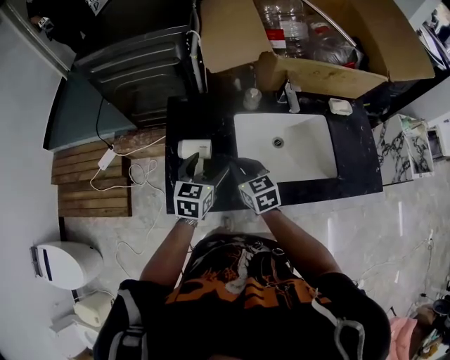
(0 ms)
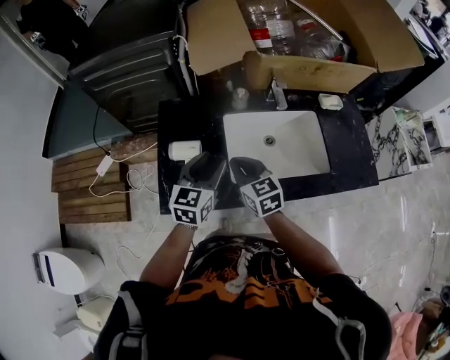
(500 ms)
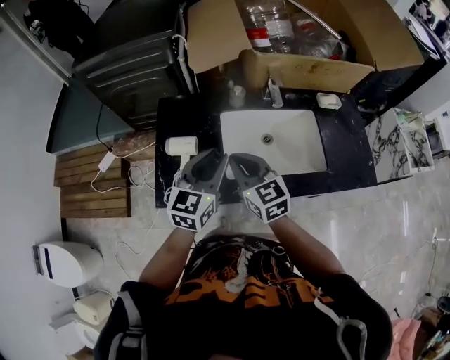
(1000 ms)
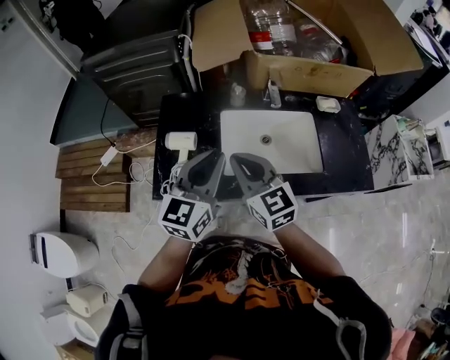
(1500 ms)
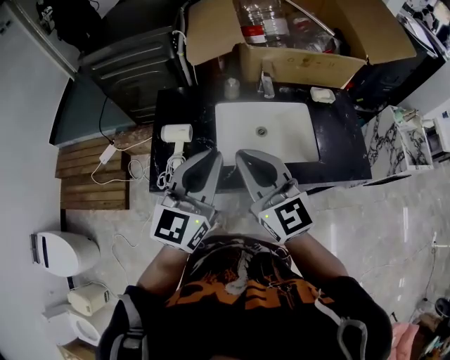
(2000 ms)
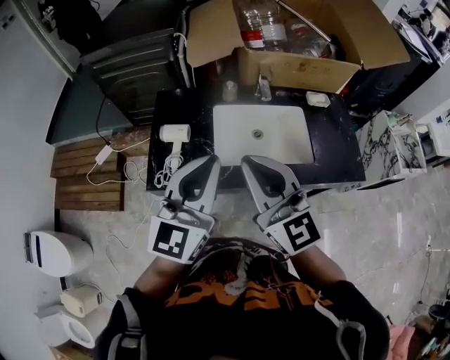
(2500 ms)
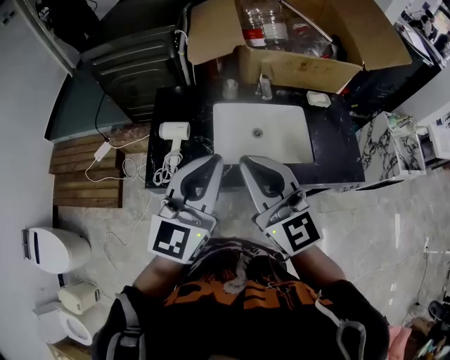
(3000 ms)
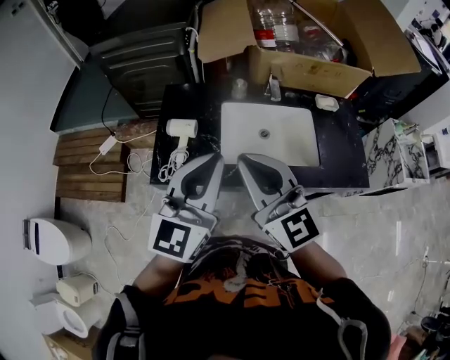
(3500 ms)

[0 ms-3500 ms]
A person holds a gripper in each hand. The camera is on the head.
0 ms to 2000 ms: The right gripper travels upward and backward by about 30 cm, and rotates roughly 30 degrees; the left gripper heads upward, backward and to the right, covering some 30 cm, rotates roughly 30 degrees, and closes up.
2000 ms to 3500 ms: The right gripper ends up some 5 cm from where it was.

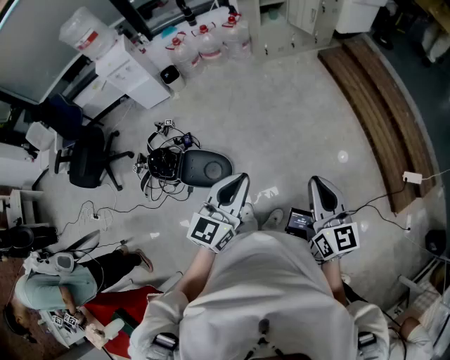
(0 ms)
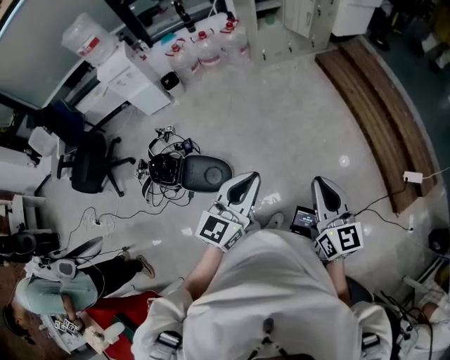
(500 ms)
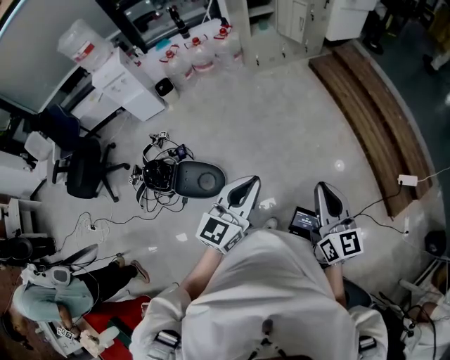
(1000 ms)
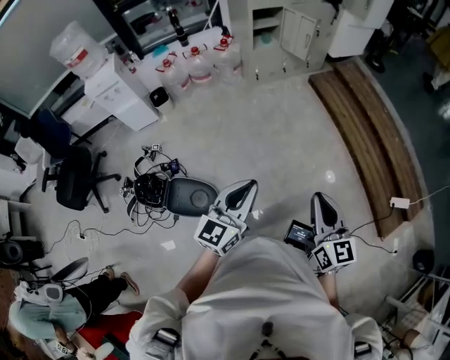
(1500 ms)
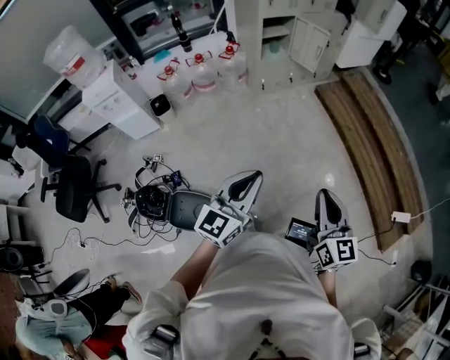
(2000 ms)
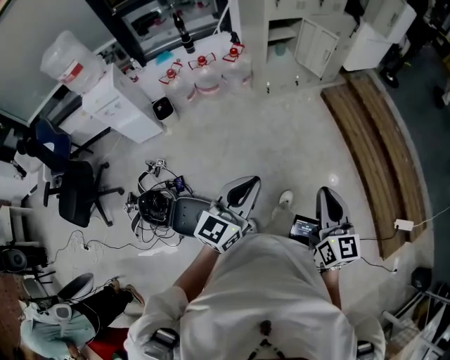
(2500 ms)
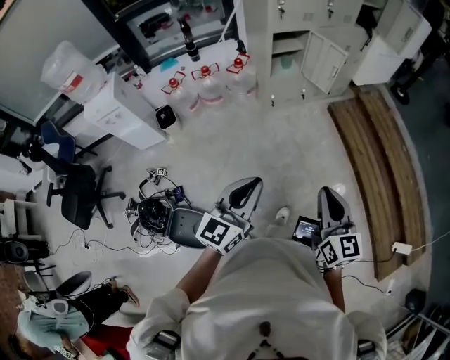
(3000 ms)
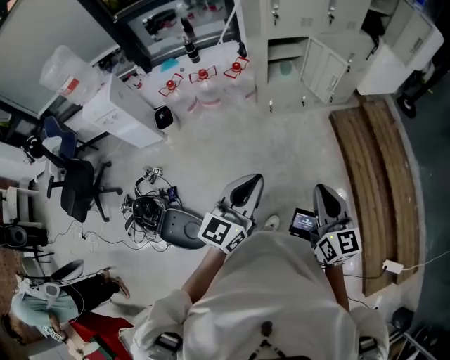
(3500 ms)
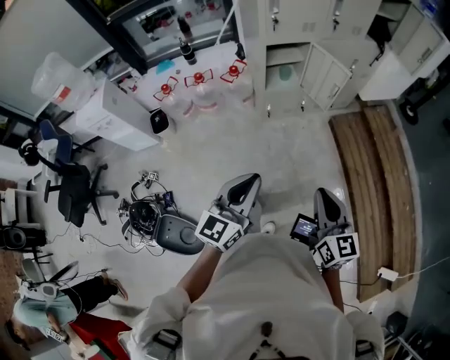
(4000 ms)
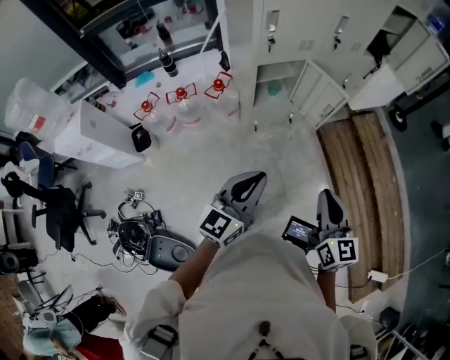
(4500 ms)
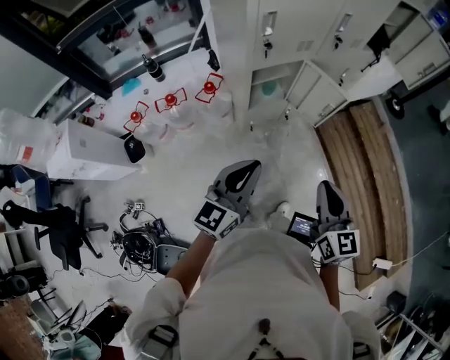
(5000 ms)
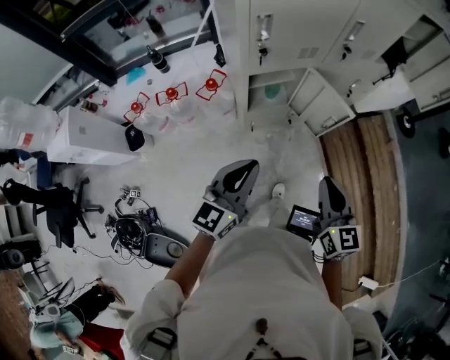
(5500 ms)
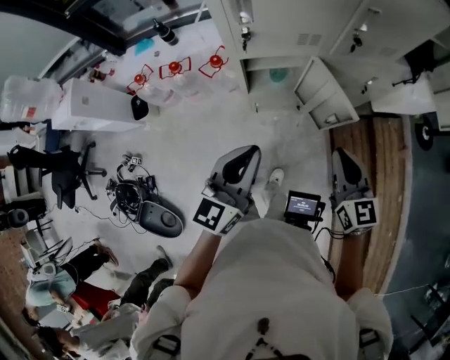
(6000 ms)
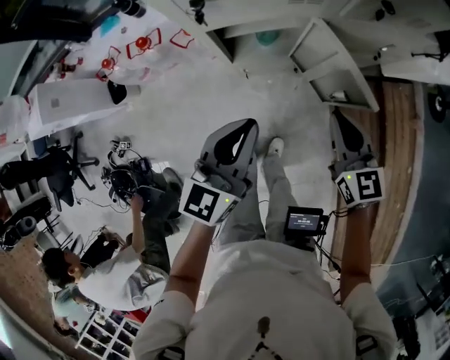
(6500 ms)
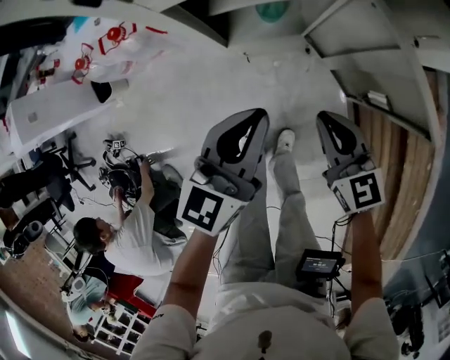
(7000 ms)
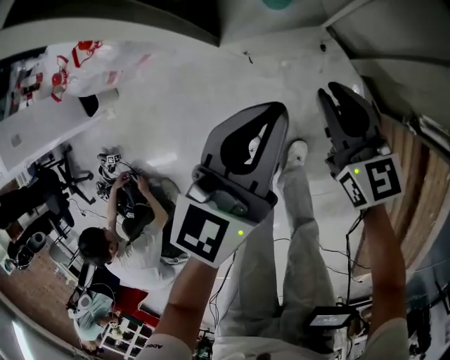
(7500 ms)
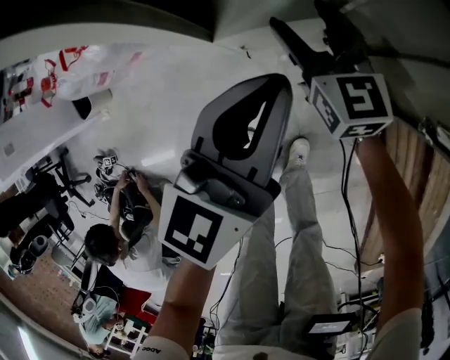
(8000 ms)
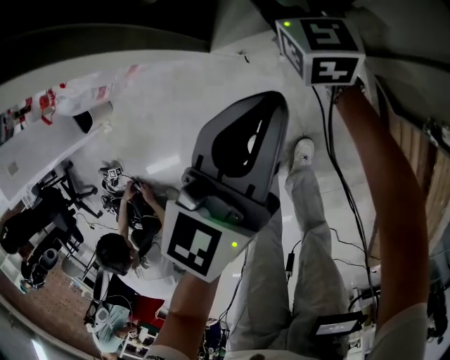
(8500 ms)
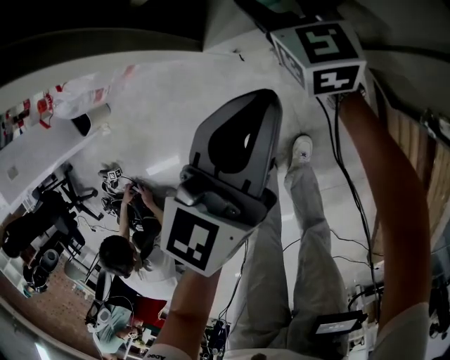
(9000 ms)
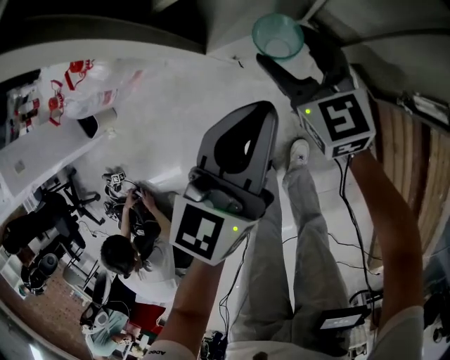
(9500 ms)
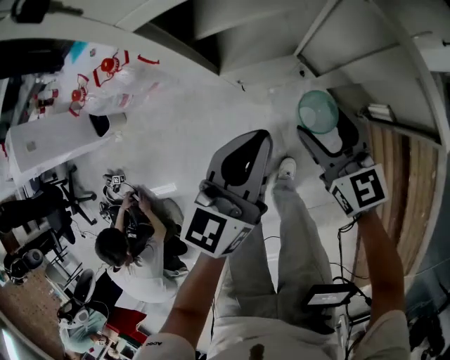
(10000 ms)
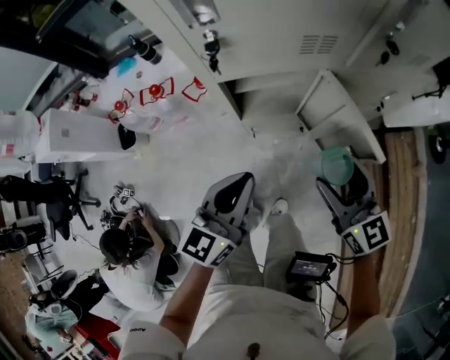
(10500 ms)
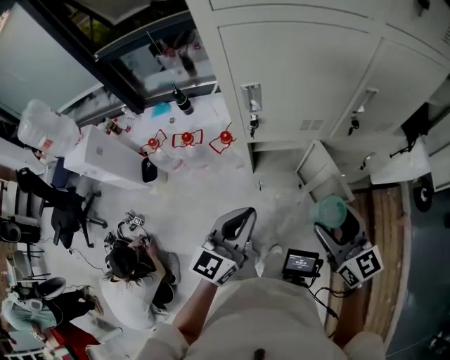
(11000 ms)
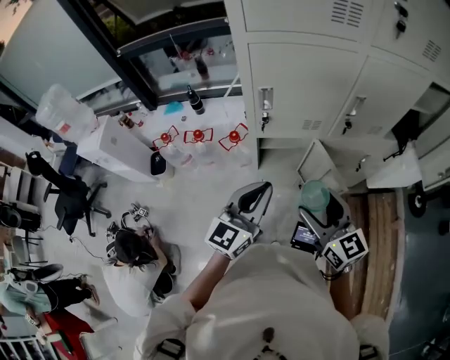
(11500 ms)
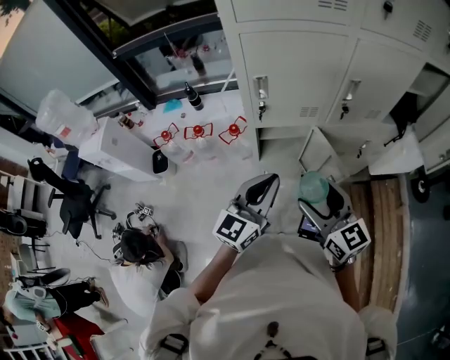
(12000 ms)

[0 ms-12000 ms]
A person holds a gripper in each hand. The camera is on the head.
0 ms to 2000 ms: Both grippers move forward, roughly 25 cm.
2000 ms to 4000 ms: Both grippers travel together forward, roughly 40 cm.
4000 ms to 6000 ms: Both grippers travel together forward, approximately 40 cm.
6000 ms to 8000 ms: The grippers both shift downward and forward by roughly 50 cm. The right gripper opens up.
8000 ms to 10000 ms: The left gripper heads upward and backward, covering approximately 10 cm. Meanwhile the right gripper shifts roughly 20 cm backward, upward and to the right.
10000 ms to 12000 ms: Both grippers travel together upward, some 40 cm. The left gripper turns by roughly 20 degrees.

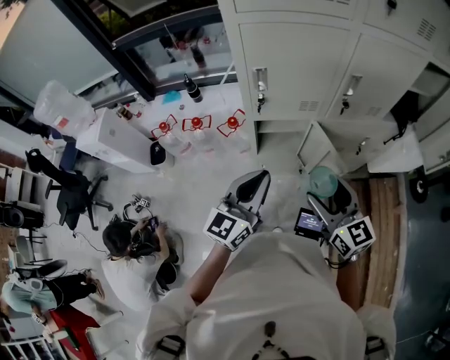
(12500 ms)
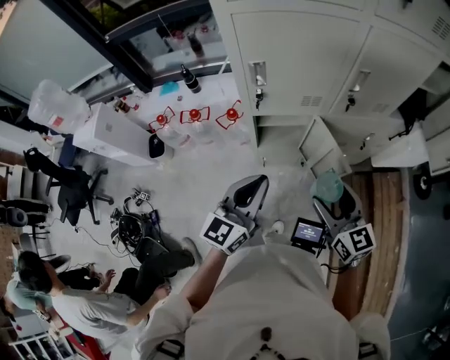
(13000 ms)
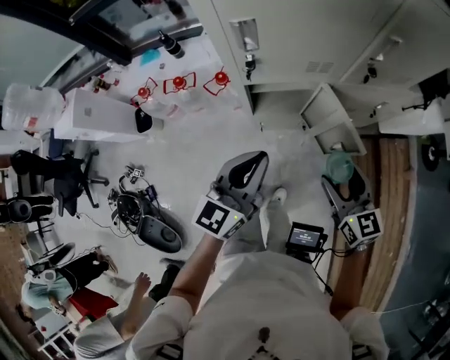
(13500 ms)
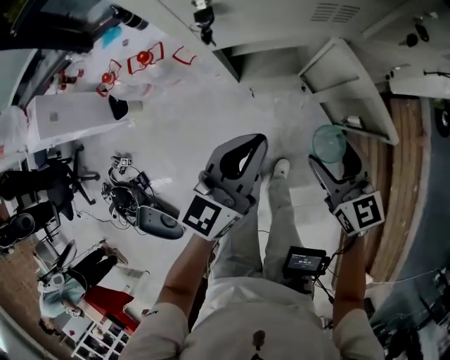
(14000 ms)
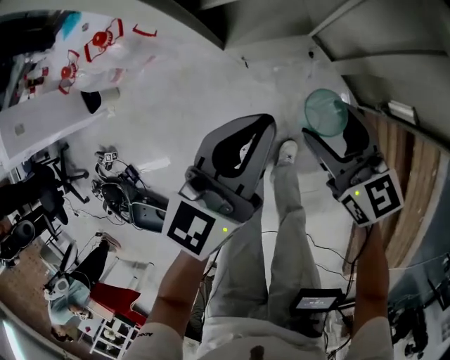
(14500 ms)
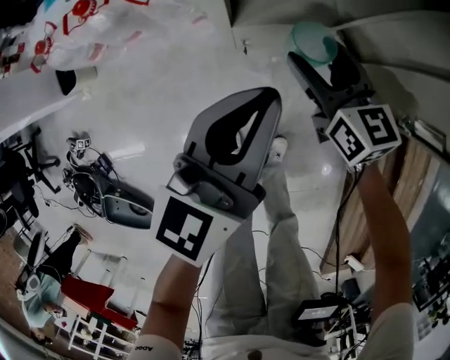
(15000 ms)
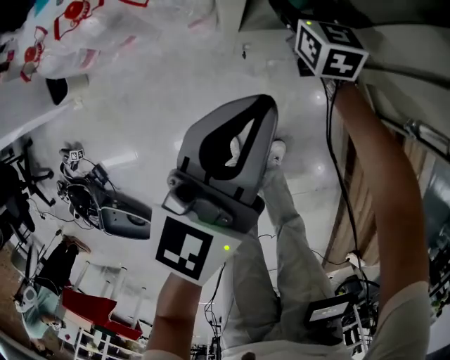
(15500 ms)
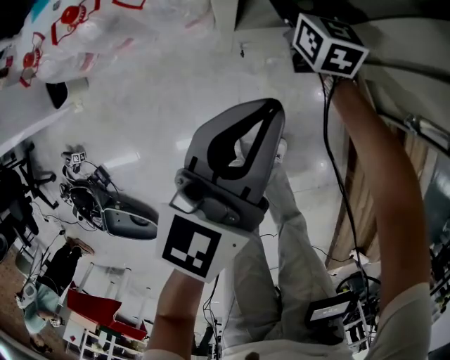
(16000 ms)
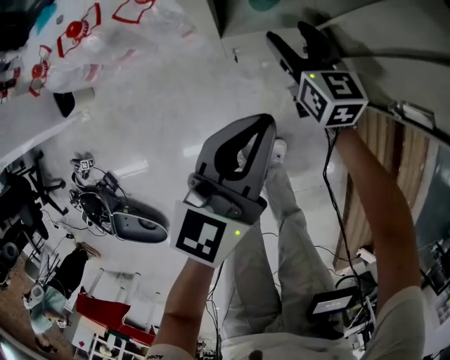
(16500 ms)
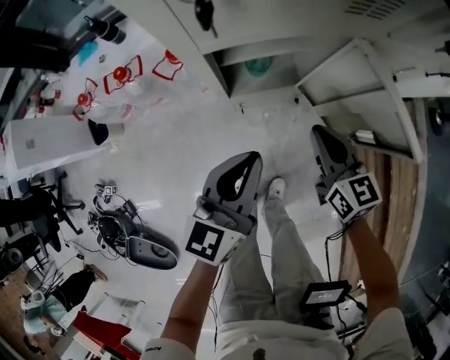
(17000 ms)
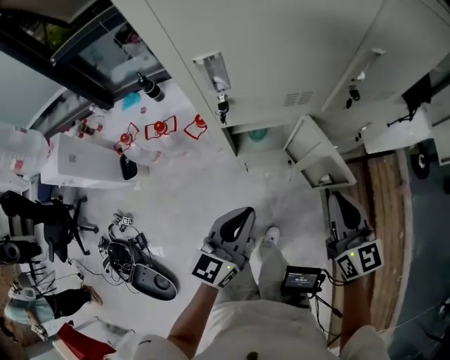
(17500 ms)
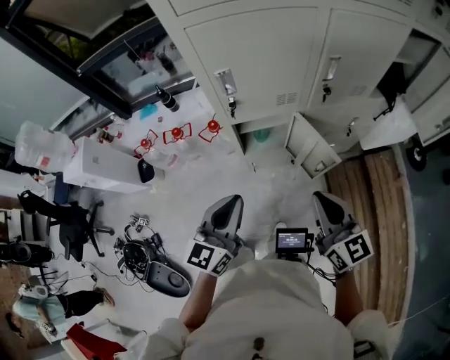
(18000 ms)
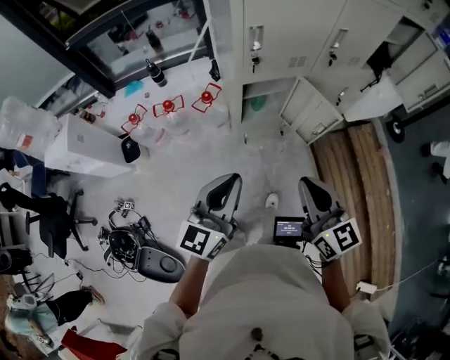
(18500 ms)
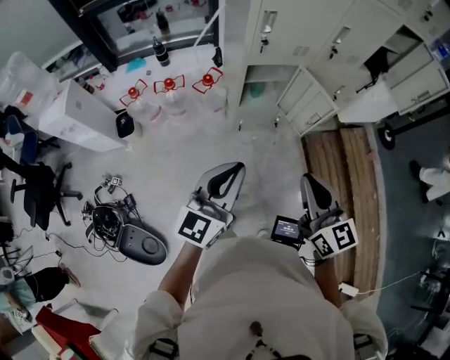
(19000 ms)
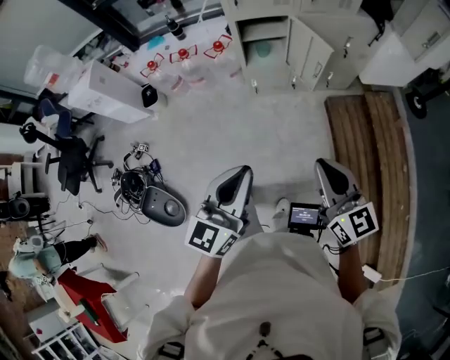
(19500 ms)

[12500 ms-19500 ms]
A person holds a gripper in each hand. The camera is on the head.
12500 ms to 14500 ms: The grippers both shift downward by approximately 35 cm. The right gripper swivels roughly 20 degrees.
14500 ms to 16000 ms: The right gripper shifts about 30 cm forward and downward, and turns by about 20 degrees. The left gripper travels downward and to the left by some 10 cm.
16000 ms to 17500 ms: The right gripper travels upward and backward by some 50 cm, and closes; the left gripper moves upward, approximately 30 cm.
17500 ms to 19500 ms: The two grippers travel together, backward, some 40 cm.

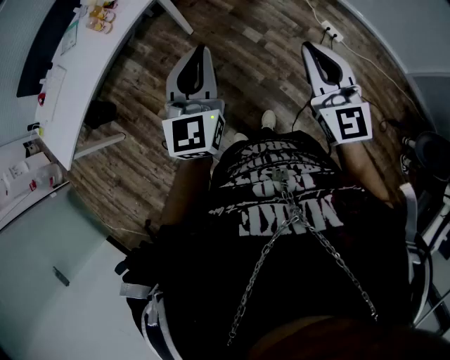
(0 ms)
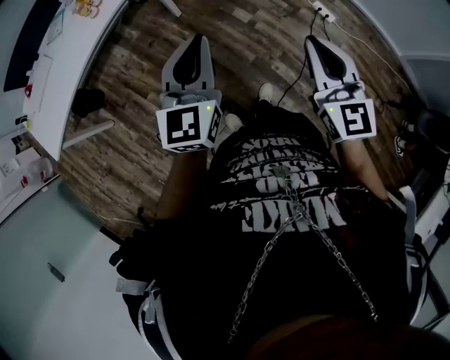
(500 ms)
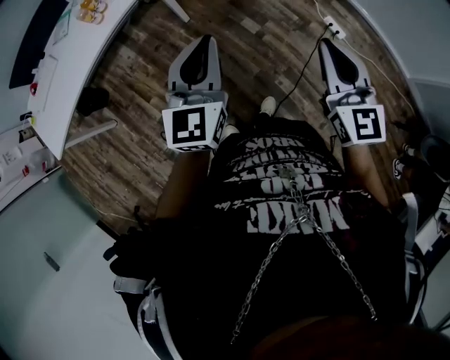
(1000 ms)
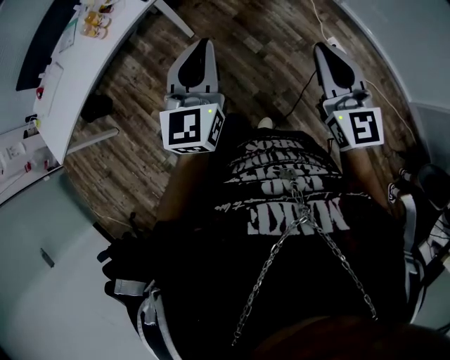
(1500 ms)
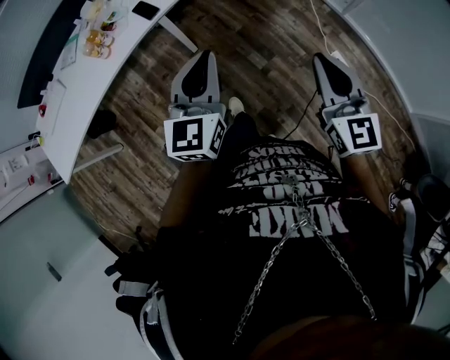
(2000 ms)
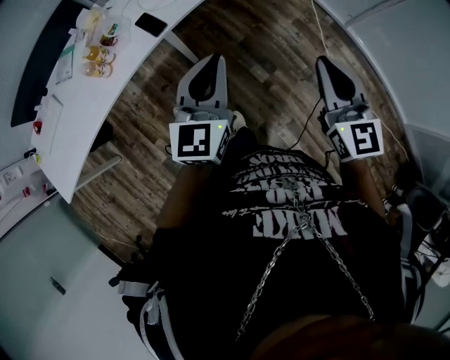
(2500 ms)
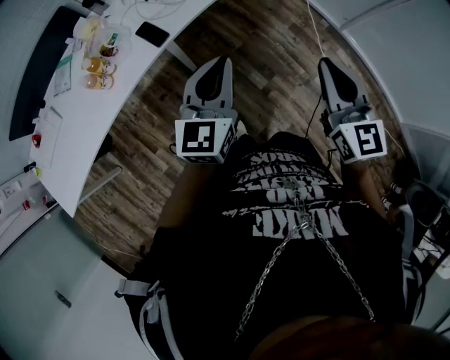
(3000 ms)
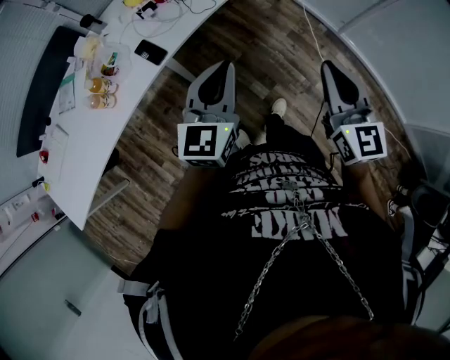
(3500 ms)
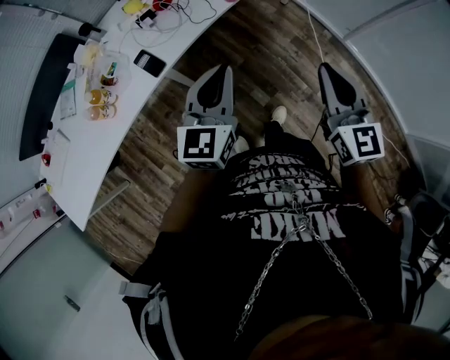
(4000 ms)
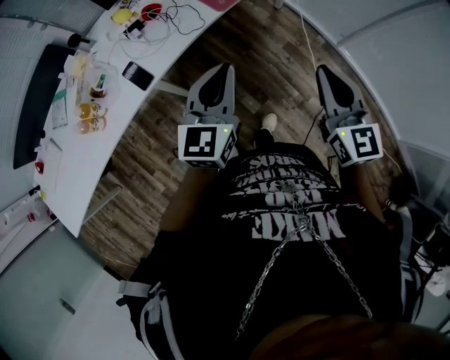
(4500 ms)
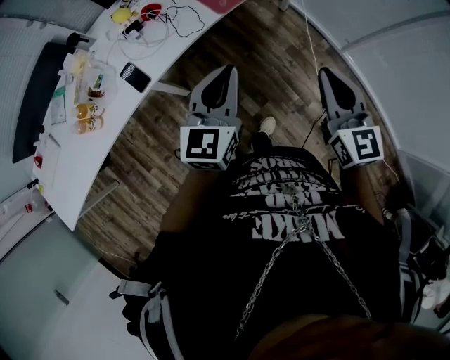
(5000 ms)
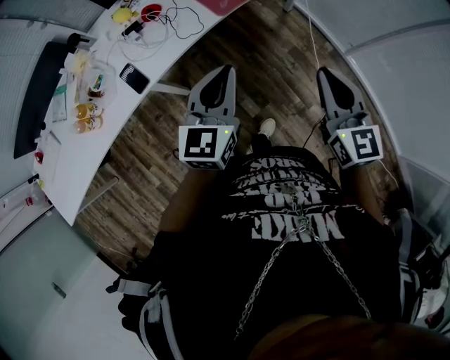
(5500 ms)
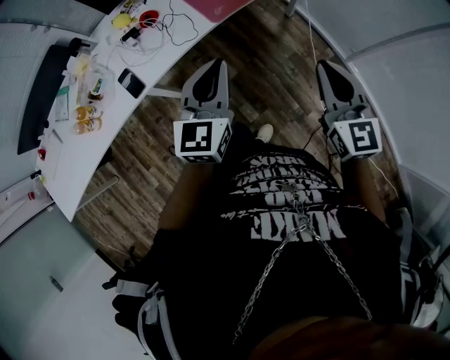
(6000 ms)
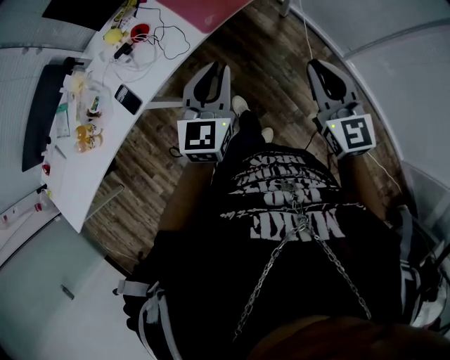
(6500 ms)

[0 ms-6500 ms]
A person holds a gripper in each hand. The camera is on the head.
0 ms to 2000 ms: The right gripper heads forward and to the right, covering approximately 25 cm. Meanwhile the left gripper goes approximately 20 cm forward.
2000 ms to 4500 ms: The two grippers go about 35 cm forward.
4500 ms to 6500 ms: The two grippers go roughly 20 cm forward and to the right.
